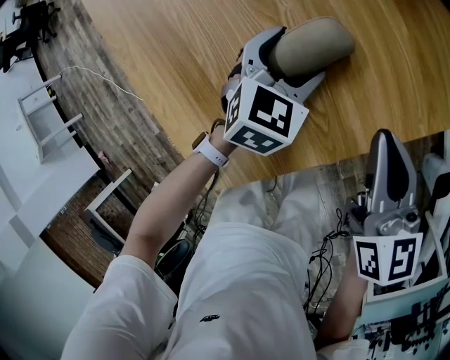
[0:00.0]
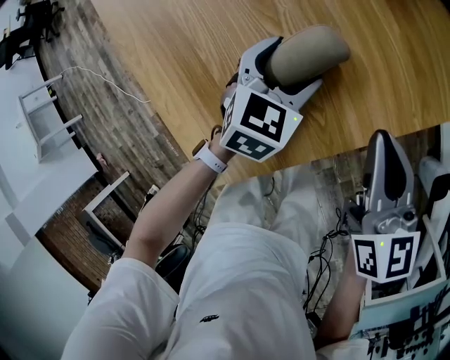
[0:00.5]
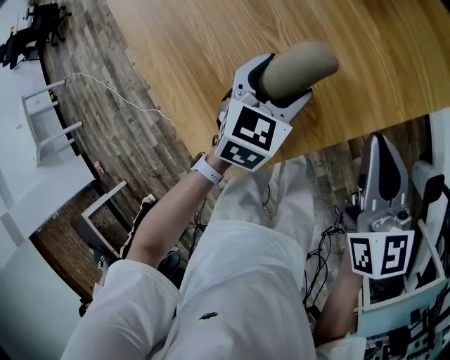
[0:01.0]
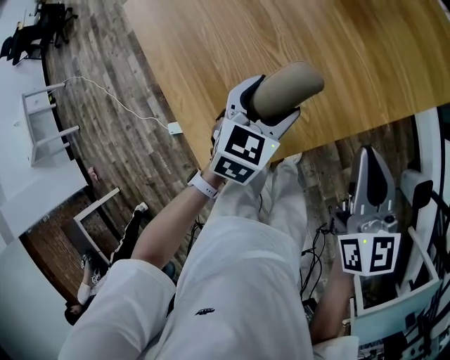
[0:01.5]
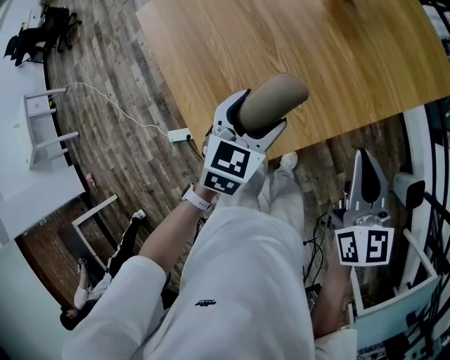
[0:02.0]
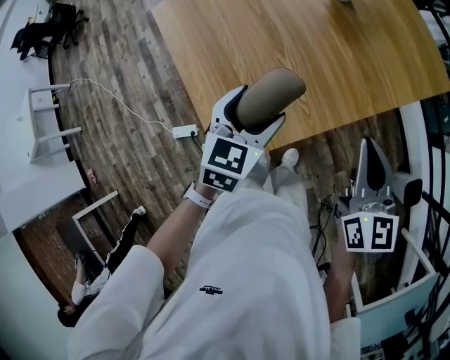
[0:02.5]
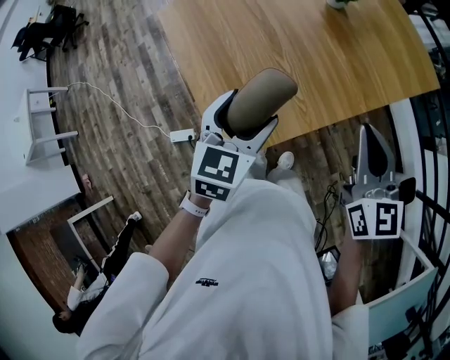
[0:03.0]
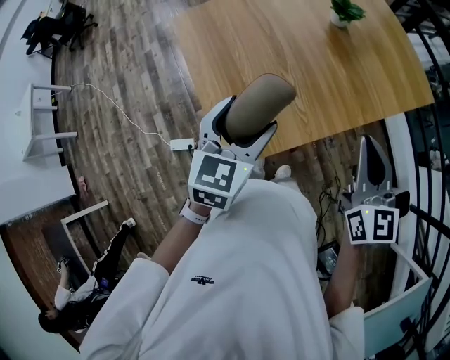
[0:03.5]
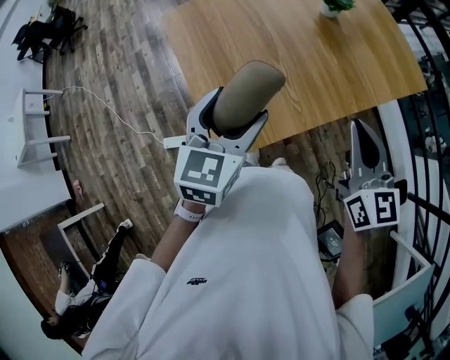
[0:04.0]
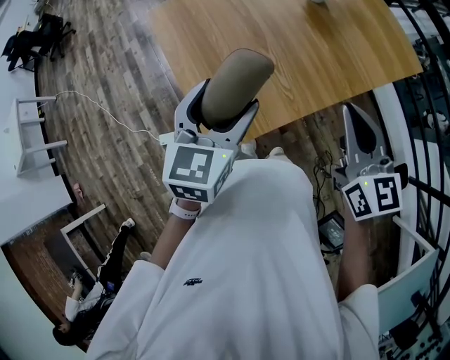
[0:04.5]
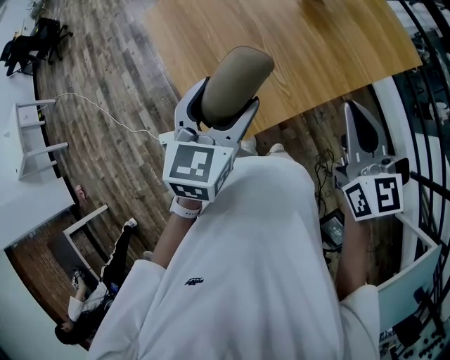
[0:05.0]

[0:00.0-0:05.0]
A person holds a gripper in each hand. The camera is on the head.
0:00.0 to 0:02.5: Both grippers travel together upward and backward, roughly 25 cm.
0:02.5 to 0:05.0: The left gripper is displaced upward and backward by about 15 cm, while the right gripper is displaced upward by some 5 cm.

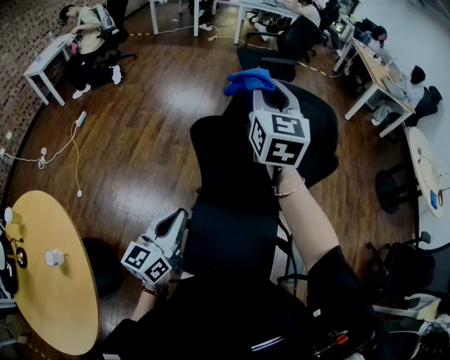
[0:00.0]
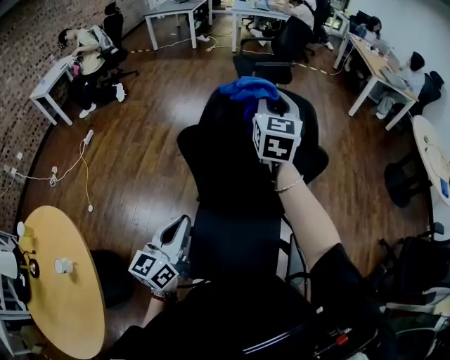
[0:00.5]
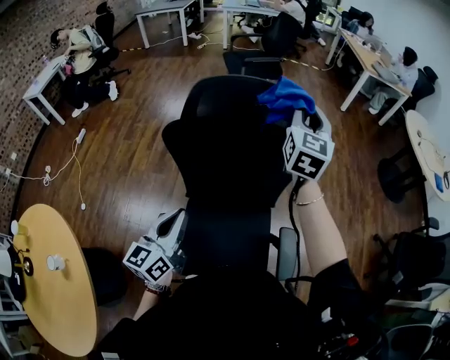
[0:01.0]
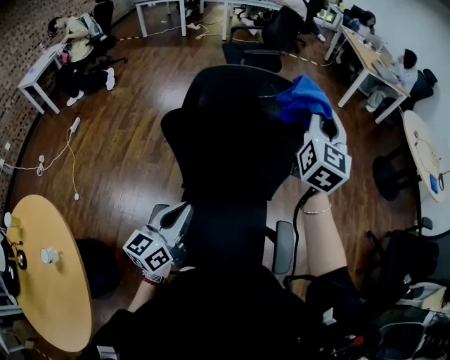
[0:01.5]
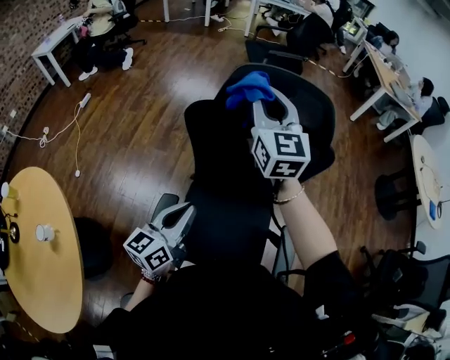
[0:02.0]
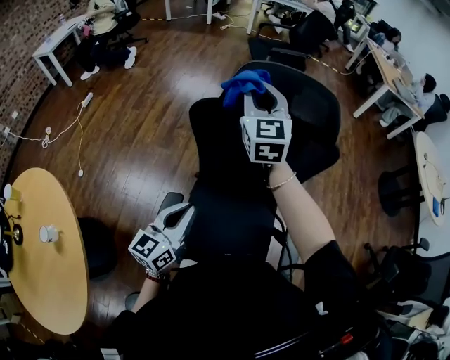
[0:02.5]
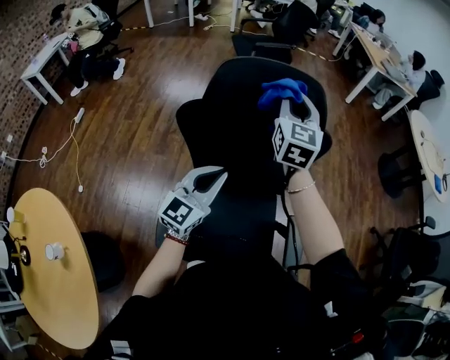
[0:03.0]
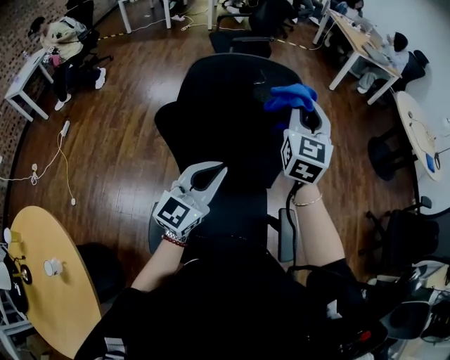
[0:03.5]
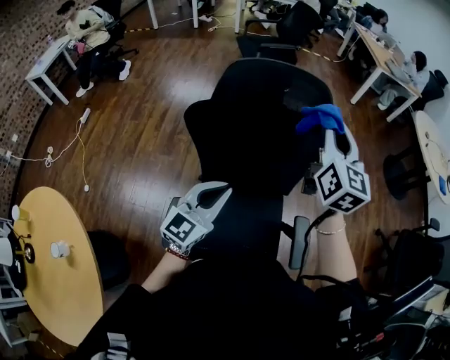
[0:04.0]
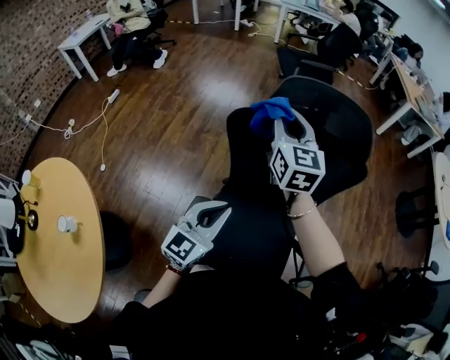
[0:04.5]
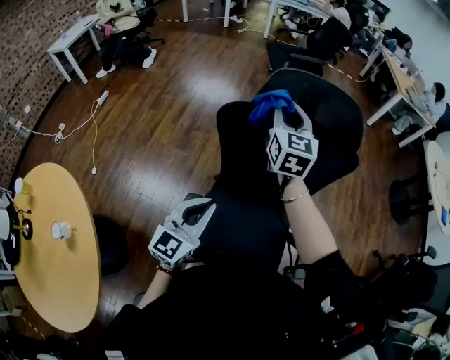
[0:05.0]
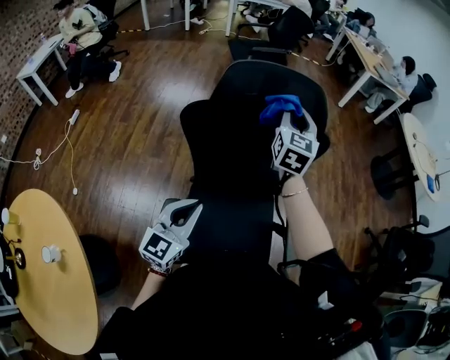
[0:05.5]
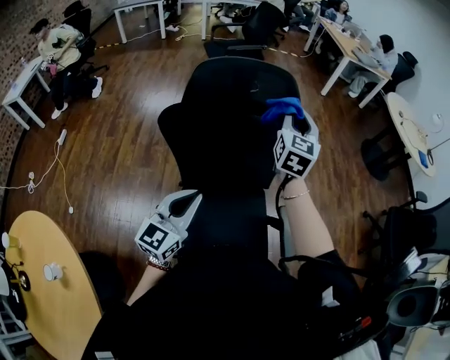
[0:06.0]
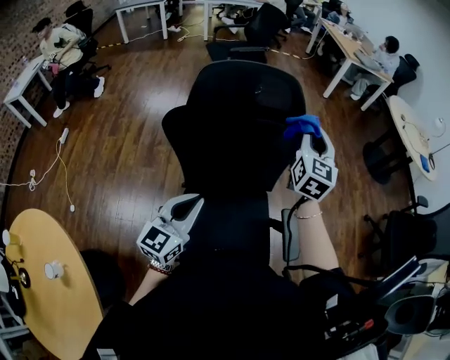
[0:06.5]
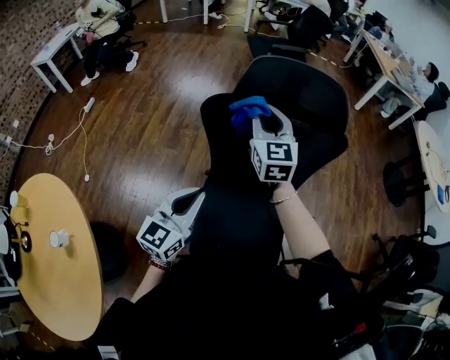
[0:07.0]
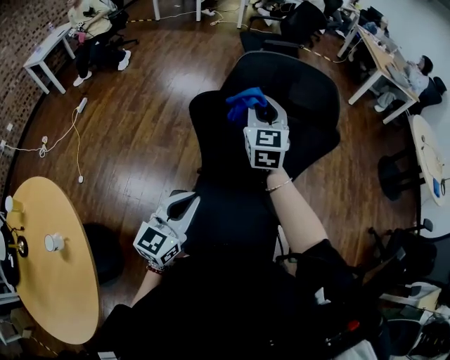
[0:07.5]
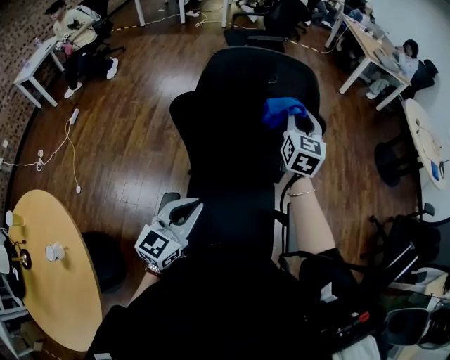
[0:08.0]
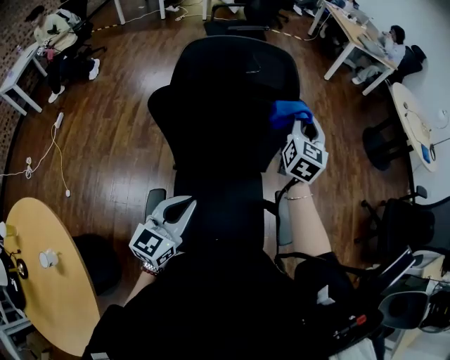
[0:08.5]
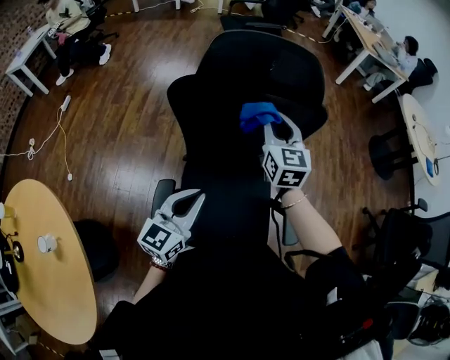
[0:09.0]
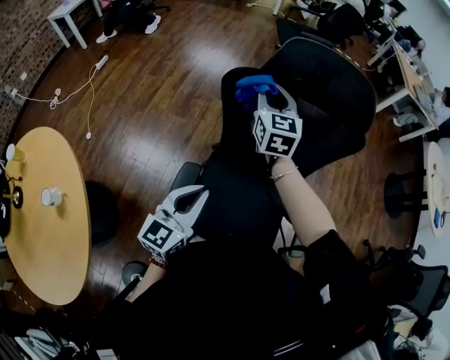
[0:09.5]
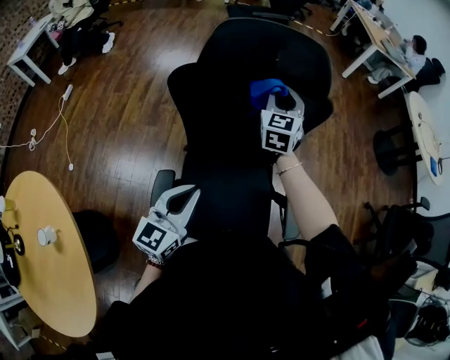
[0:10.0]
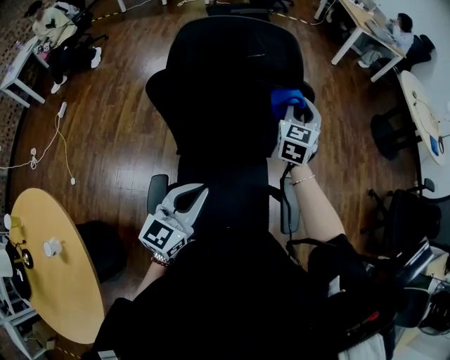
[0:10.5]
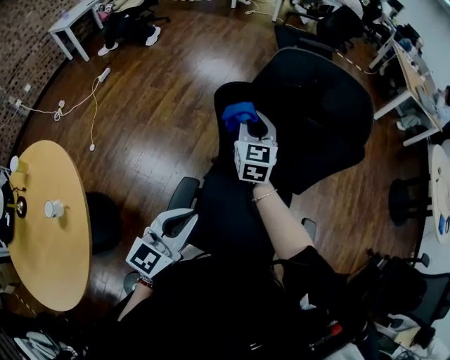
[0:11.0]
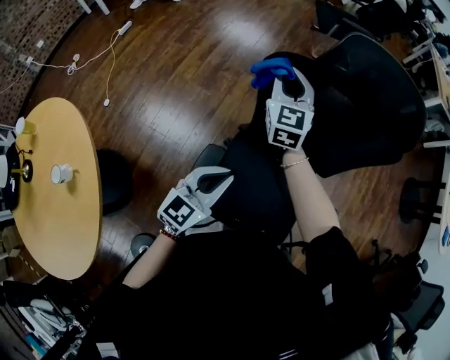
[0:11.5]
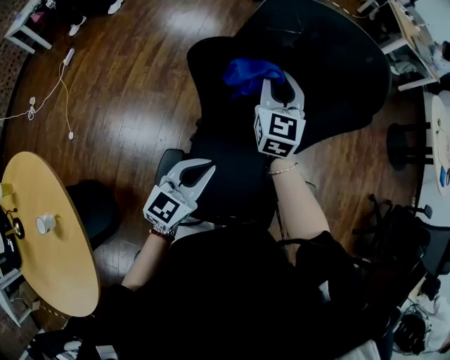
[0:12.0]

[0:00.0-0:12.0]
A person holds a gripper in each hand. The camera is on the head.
0:00.0 to 0:02.0: The right gripper goes to the right and returns, about 25 cm each way. The left gripper goes some 10 cm to the right.
0:02.0 to 0:04.0: The left gripper moves forward and to the right, approximately 10 cm, and rotates some 40 degrees. The right gripper goes some 20 cm to the right, and swivels about 30 degrees.
0:04.0 to 0:06.0: The left gripper reaches about 10 cm to the left, then returns; the right gripper goes some 5 cm downward, and reaches about 25 cm to the left, then returns.
0:06.0 to 0:08.0: The right gripper goes left and right, about 30 cm each way, reversing 2 times. The left gripper travels to the left and back again, about 5 cm each way.
0:10.0 to 0:12.0: The left gripper goes left and right, approximately 15 cm each way, reversing 2 times, while the right gripper moves left and right over some 40 cm, changing direction 2 times.

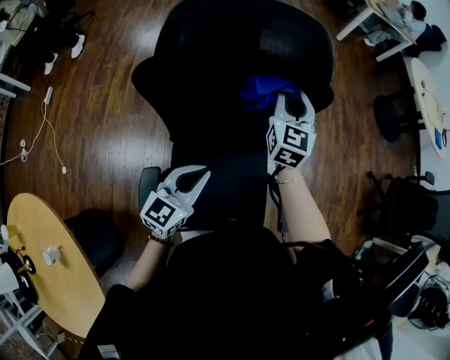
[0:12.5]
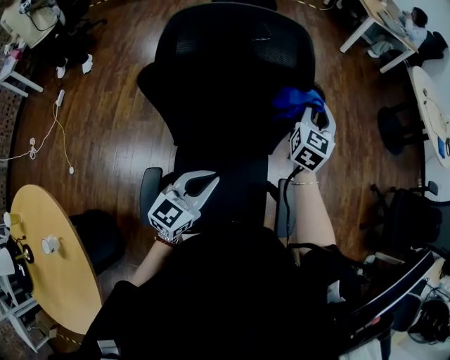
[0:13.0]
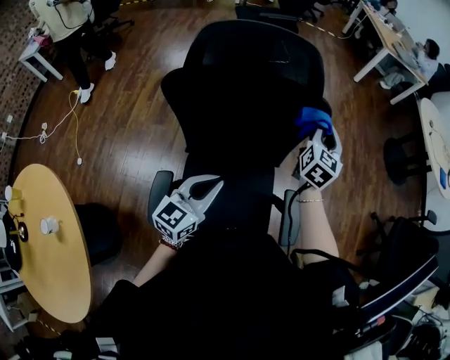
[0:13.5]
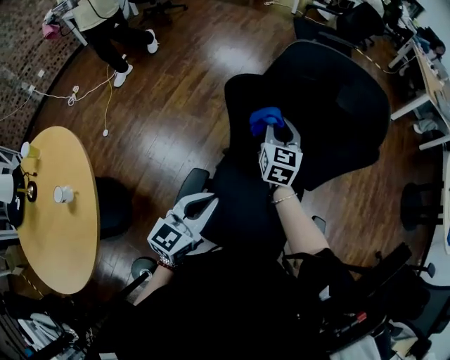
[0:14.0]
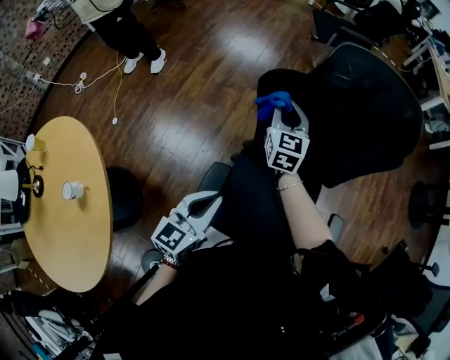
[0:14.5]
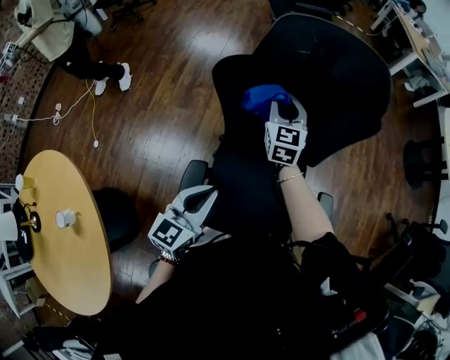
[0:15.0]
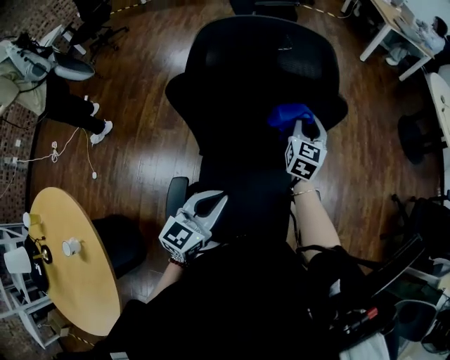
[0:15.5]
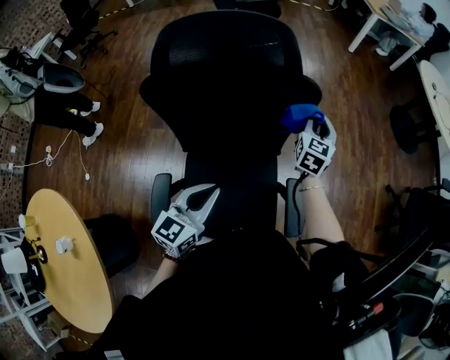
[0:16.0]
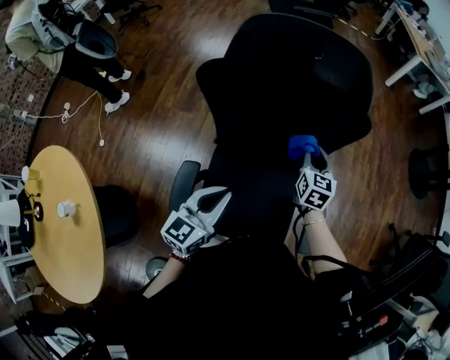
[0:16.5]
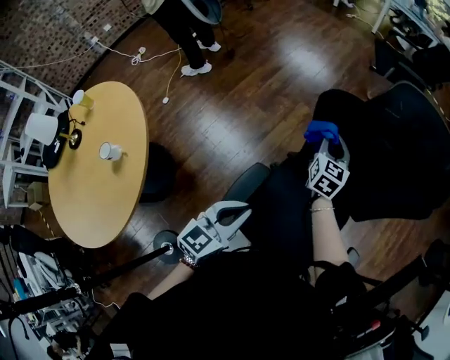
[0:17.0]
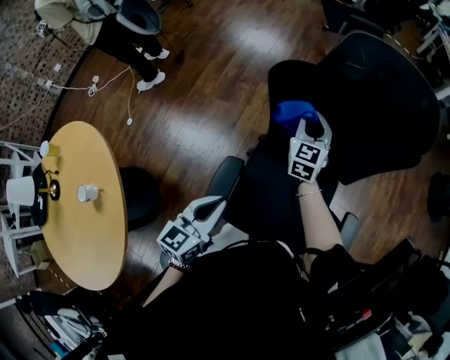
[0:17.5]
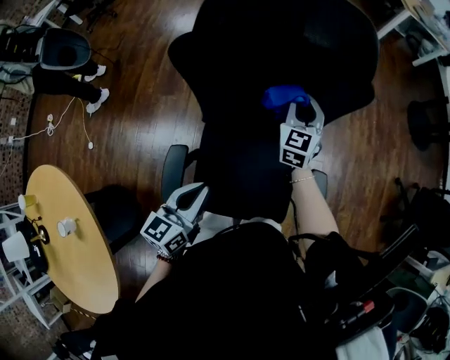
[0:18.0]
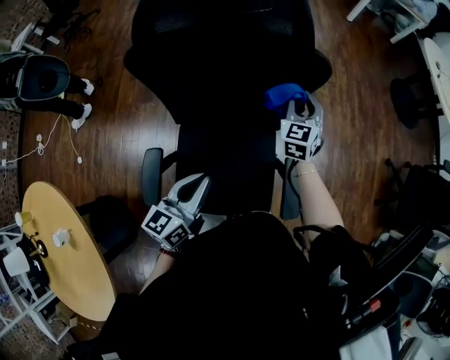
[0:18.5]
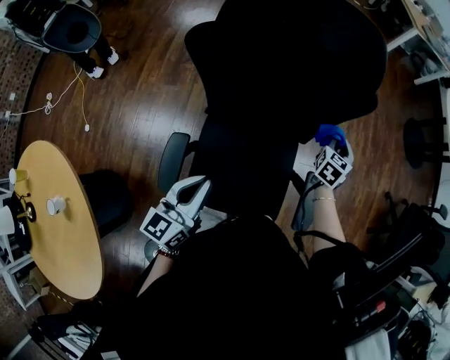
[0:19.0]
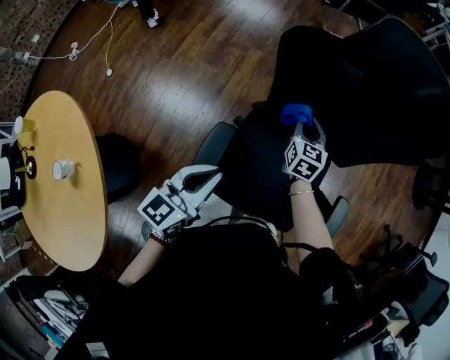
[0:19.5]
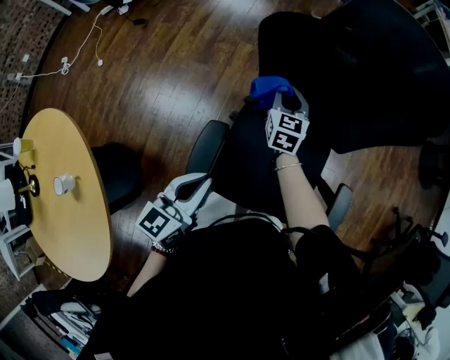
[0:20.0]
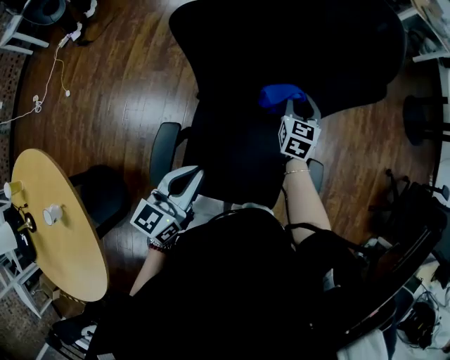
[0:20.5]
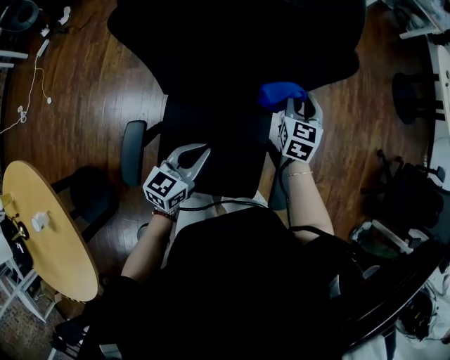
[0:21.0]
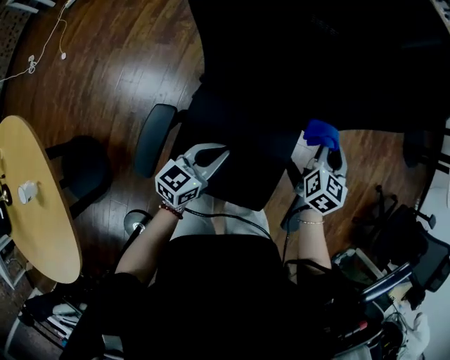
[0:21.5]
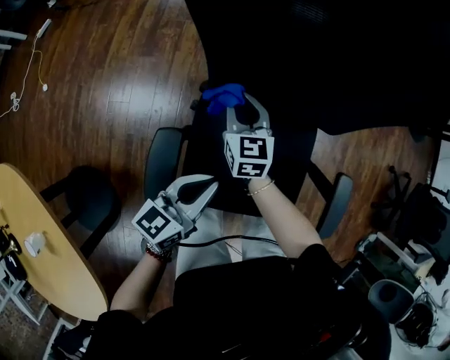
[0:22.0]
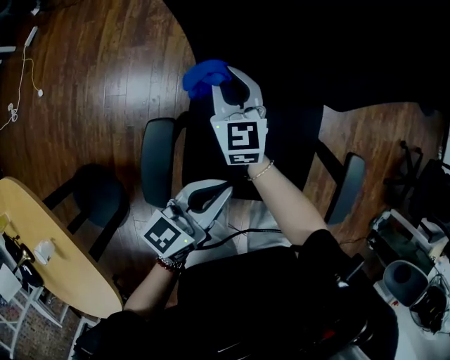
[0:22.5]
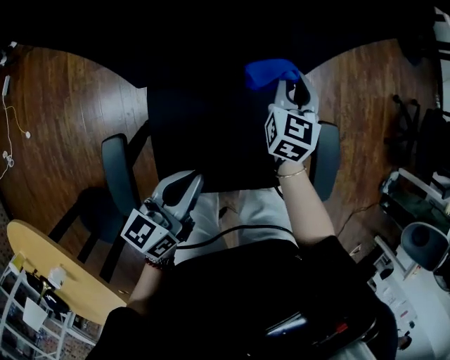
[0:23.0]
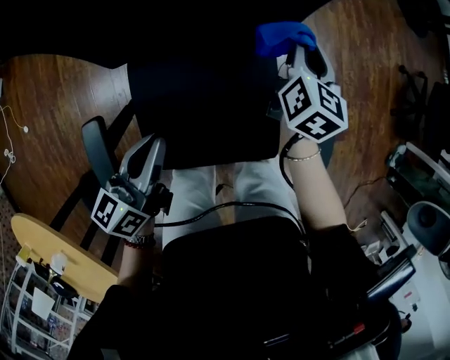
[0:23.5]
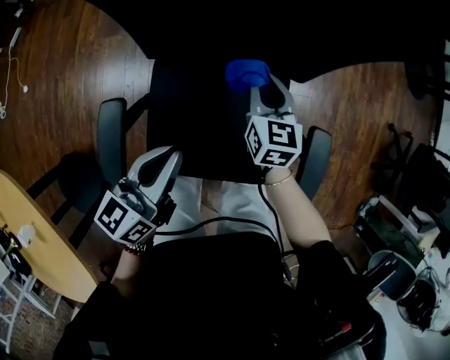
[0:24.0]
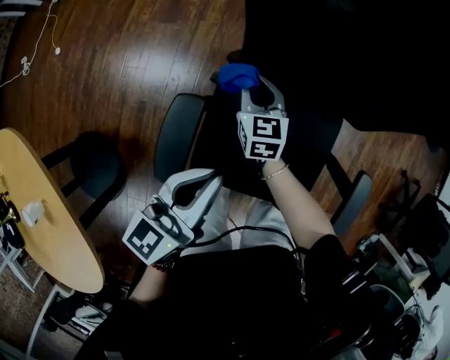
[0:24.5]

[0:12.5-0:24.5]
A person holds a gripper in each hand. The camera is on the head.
0:12.5 to 0:14.5: The left gripper moves some 20 cm, and turns by approximately 30 degrees. Meanwhile the right gripper shifts by roughly 30 cm, and turns by approximately 30 degrees.
0:14.5 to 0:16.5: The left gripper moves approximately 20 cm. Meanwhile the right gripper changes place by approximately 35 cm, and turns by about 20 degrees.
0:16.5 to 0:18.5: The left gripper moves about 15 cm to the left and comes back; the right gripper reaches about 30 cm to the left, then returns, and swivels roughly 20 degrees.
0:18.5 to 0:20.5: The left gripper is displaced to the left by about 10 cm. The right gripper goes left and right, approximately 40 cm each way, reversing 2 times.
0:20.5 to 0:22.5: The right gripper shifts some 25 cm to the left and backward, and turns by about 20 degrees; the left gripper moves downward, approximately 10 cm.
0:22.5 to 0:24.5: The right gripper travels downward by approximately 5 cm; the left gripper shifts by some 10 cm.
